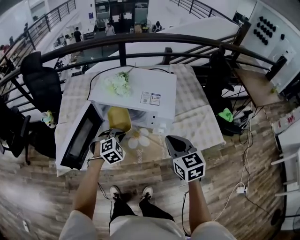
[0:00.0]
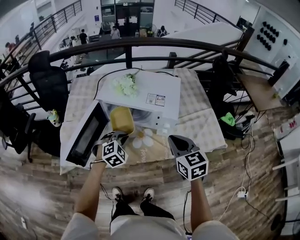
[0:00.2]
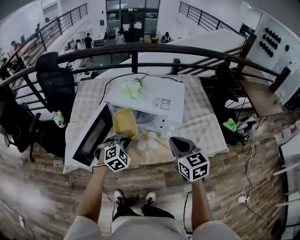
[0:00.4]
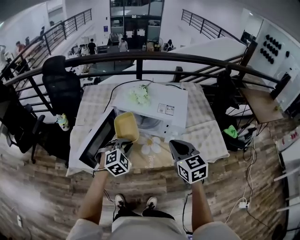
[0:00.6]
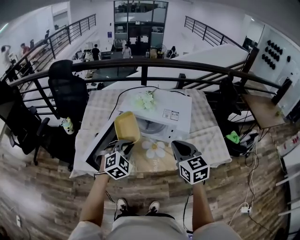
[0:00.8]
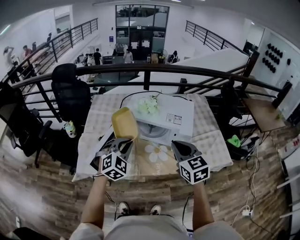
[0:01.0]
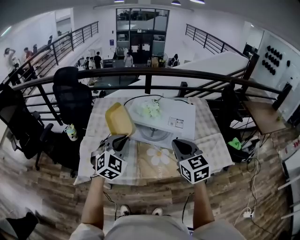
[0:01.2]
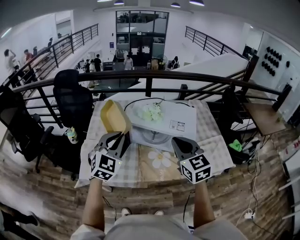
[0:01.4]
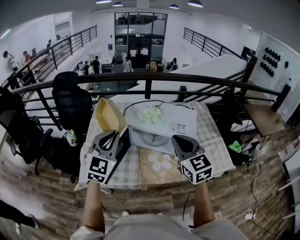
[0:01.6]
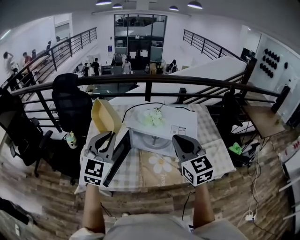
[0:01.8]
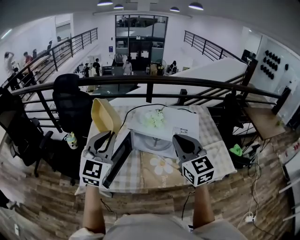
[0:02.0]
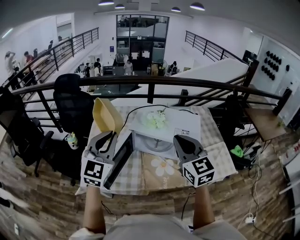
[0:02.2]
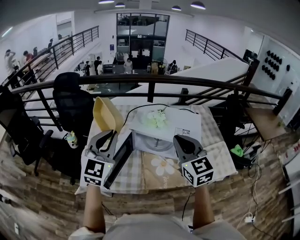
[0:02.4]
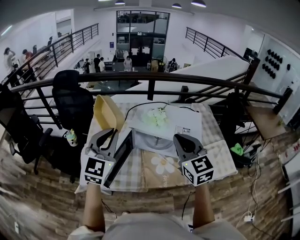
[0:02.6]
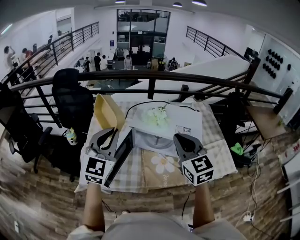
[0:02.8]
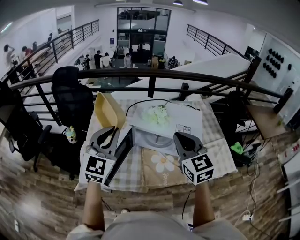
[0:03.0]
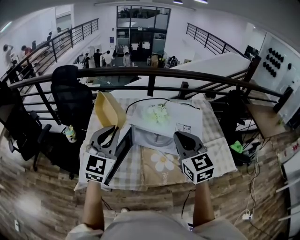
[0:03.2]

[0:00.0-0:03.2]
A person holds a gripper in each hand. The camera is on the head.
0:00.0 to 0:01.6: The left gripper shifts approximately 35 cm upward and to the left, and angles its fingers upward, by roughly 40 degrees. The right gripper shifts roughly 20 cm upward and to the left, and changes its angle by roughly 20 degrees.
0:01.6 to 0:03.2: The grippers make only small movements.

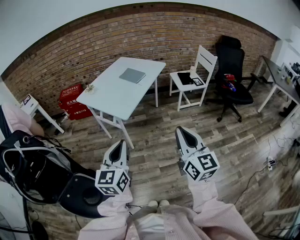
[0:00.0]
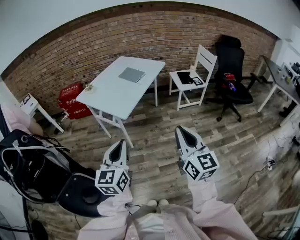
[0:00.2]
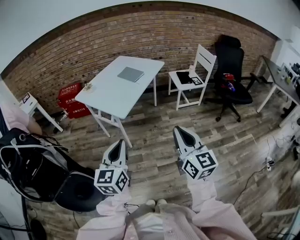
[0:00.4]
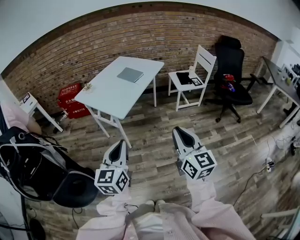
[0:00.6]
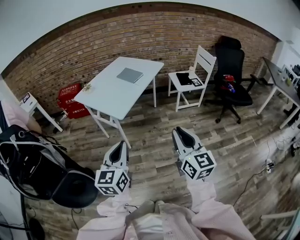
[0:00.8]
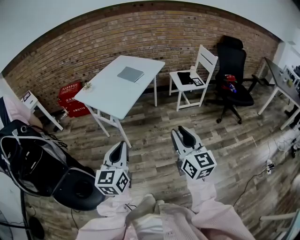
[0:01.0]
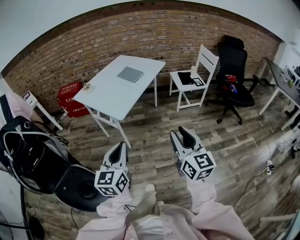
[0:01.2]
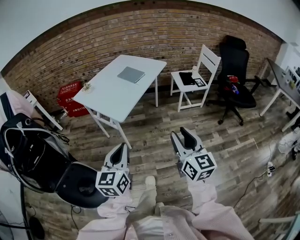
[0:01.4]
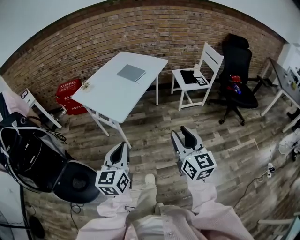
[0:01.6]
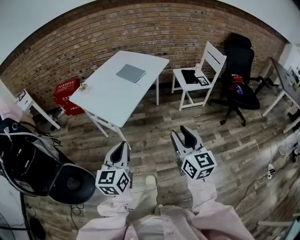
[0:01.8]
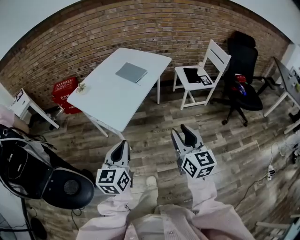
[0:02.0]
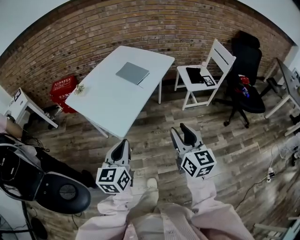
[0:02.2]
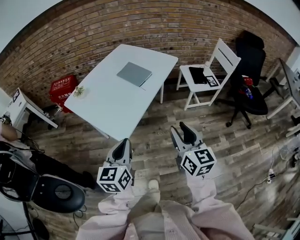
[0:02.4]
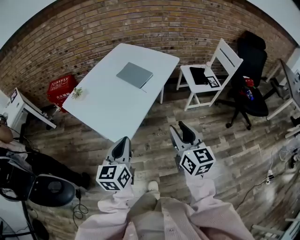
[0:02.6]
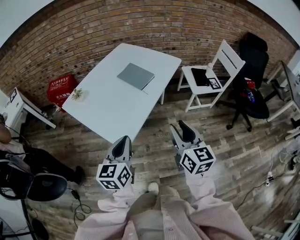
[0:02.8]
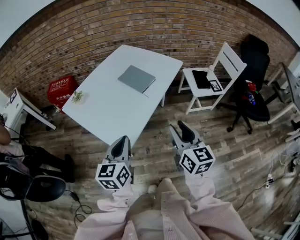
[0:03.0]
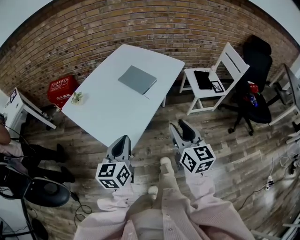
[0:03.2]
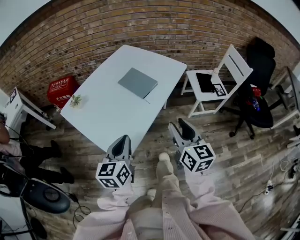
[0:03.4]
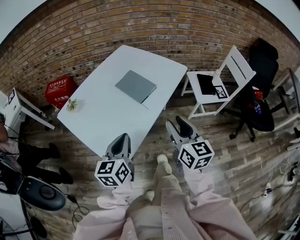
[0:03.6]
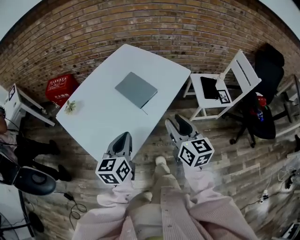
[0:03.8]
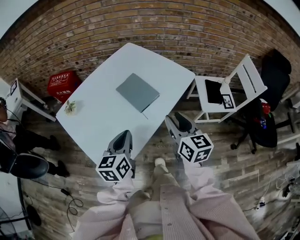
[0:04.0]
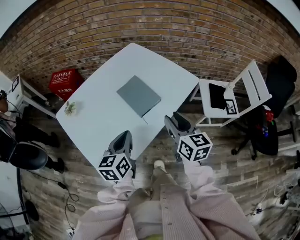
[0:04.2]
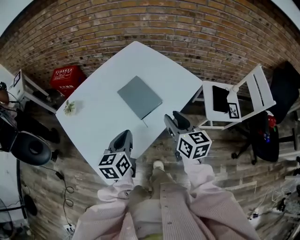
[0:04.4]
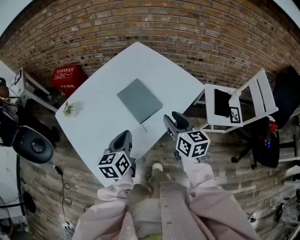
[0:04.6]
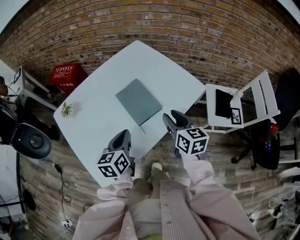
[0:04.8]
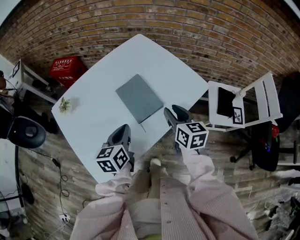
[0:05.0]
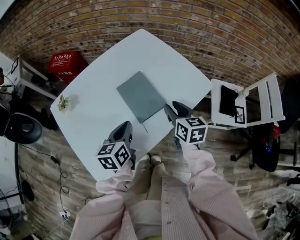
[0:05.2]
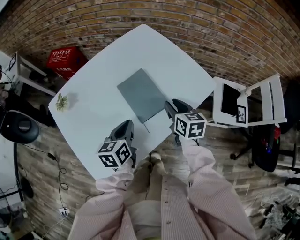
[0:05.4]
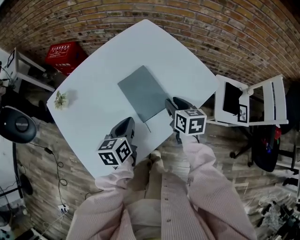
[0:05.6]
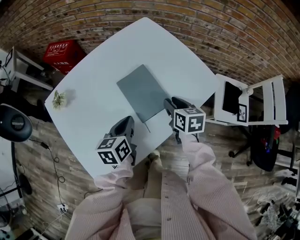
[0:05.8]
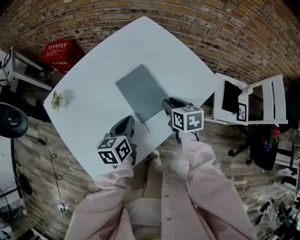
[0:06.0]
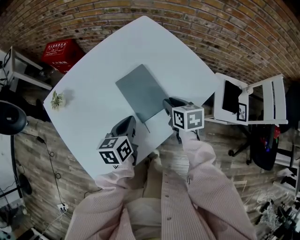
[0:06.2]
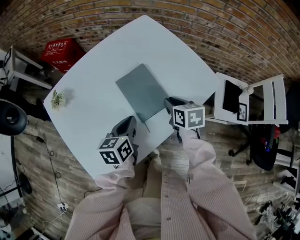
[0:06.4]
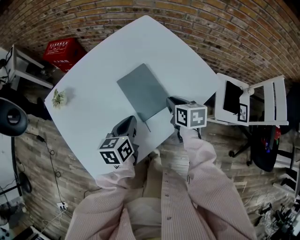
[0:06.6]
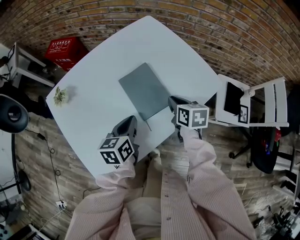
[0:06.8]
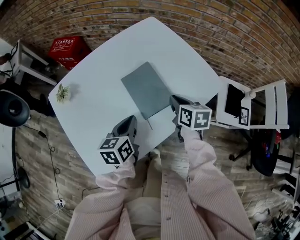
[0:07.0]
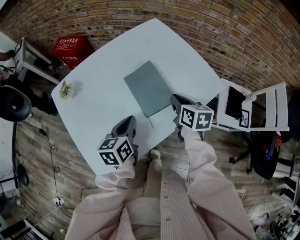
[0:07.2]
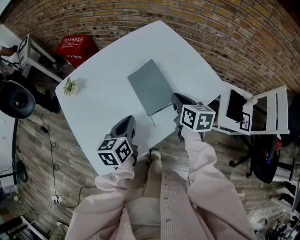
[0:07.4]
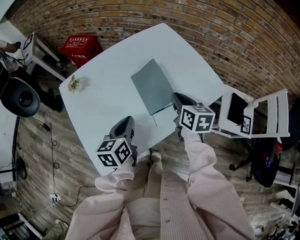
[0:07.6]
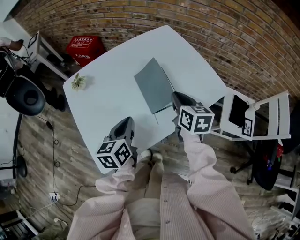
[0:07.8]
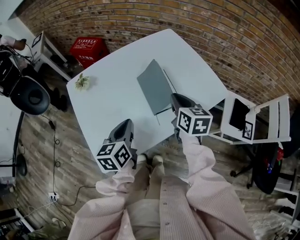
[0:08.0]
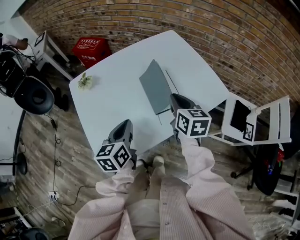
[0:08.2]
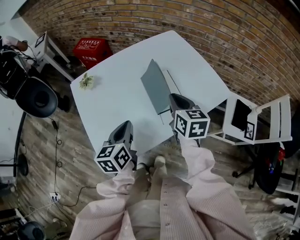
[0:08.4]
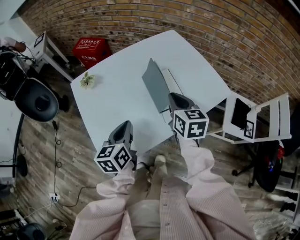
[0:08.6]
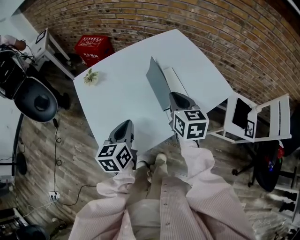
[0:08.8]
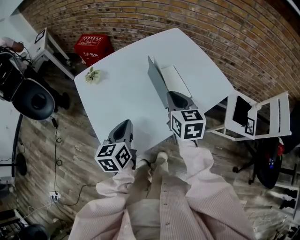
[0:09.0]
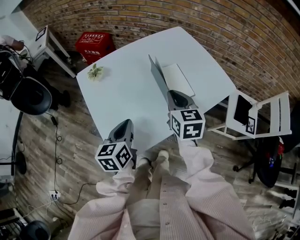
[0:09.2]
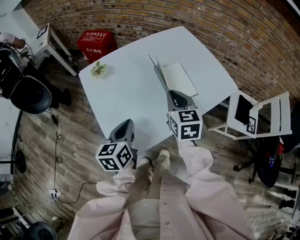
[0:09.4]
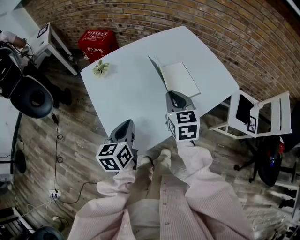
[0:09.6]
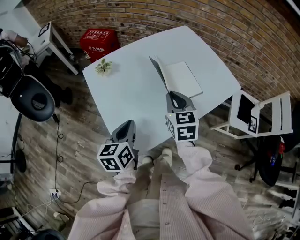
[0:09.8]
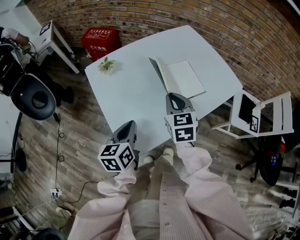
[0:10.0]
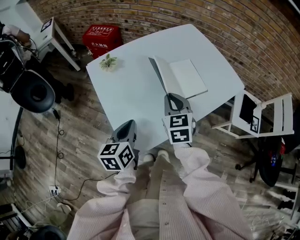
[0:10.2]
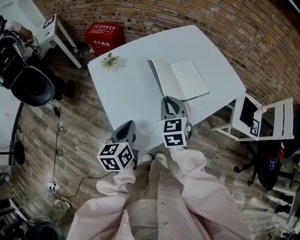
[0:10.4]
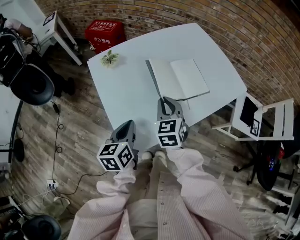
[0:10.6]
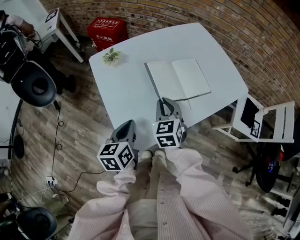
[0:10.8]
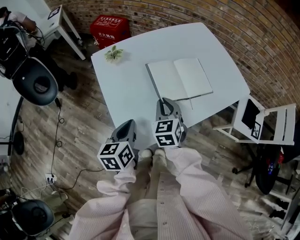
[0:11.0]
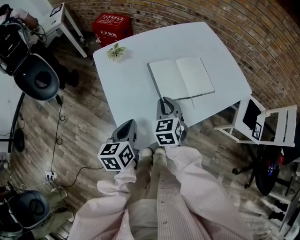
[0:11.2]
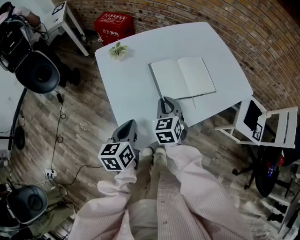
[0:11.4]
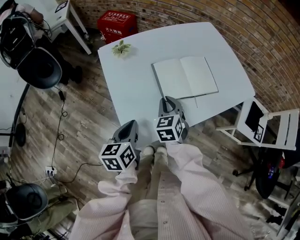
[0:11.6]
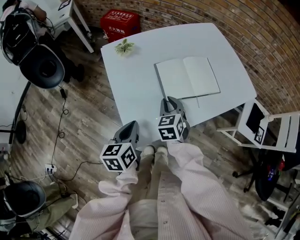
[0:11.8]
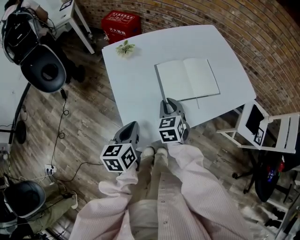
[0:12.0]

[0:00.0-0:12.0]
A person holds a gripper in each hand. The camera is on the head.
0:00.0 to 0:01.6: The left gripper heads forward, covering about 5 cm. The right gripper heads forward and downward, covering some 10 cm, and opens up.
0:01.6 to 0:03.0: Both grippers move forward, roughly 30 cm.
0:03.0 to 0:04.4: Both grippers move forward, roughly 25 cm.
0:04.4 to 0:06.0: The right gripper goes some 20 cm downward and forward, and changes its angle by about 30 degrees. Meanwhile the left gripper moves forward and downward, approximately 15 cm.
0:06.0 to 0:07.6: The left gripper heads backward, covering approximately 5 cm. Meanwhile the right gripper moves upward, some 10 cm, and closes up.
0:07.6 to 0:09.0: The left gripper moves to the left and backward, roughly 10 cm. The right gripper heads to the left and upward, covering approximately 10 cm.
0:09.0 to 0:10.4: The right gripper goes about 10 cm to the left and downward, and swivels roughly 20 degrees. The left gripper heads to the left, covering about 5 cm.
0:10.4 to 0:12.0: The right gripper moves downward, about 5 cm; the left gripper shifts by roughly 5 cm.

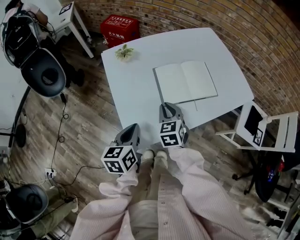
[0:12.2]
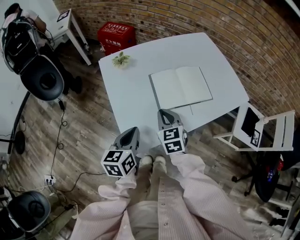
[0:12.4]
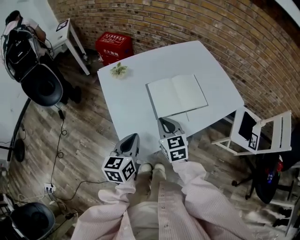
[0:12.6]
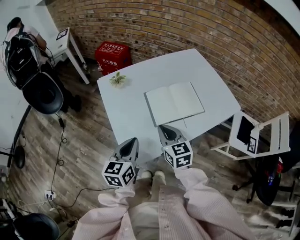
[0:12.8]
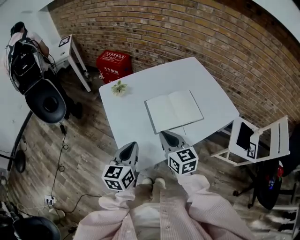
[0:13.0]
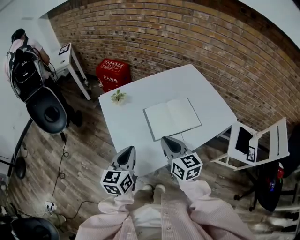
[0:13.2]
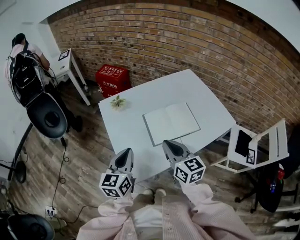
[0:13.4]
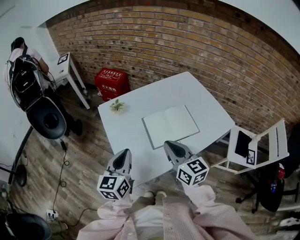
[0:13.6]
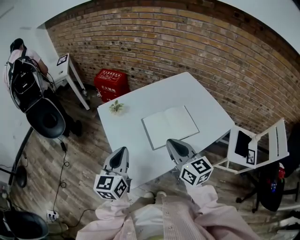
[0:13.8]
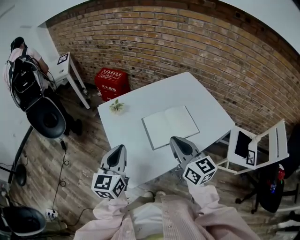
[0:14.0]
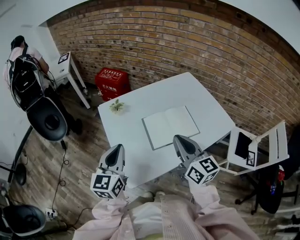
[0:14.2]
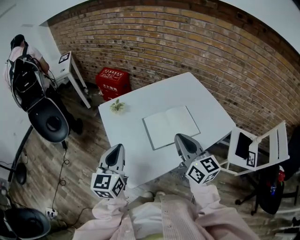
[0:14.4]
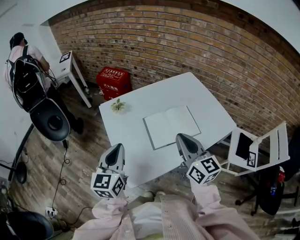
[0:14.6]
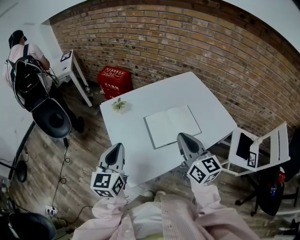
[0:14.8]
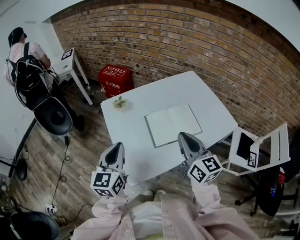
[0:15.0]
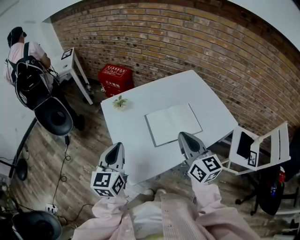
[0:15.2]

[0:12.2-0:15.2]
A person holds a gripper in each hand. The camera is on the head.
0:12.2 to 0:13.8: The two grippers go about 15 cm upward. The right gripper tips its fingers upward by approximately 30 degrees. The left gripper swivels some 30 degrees.
0:13.8 to 0:15.2: There are only small adjustments of the grippers.

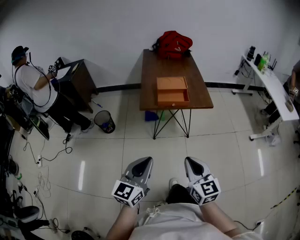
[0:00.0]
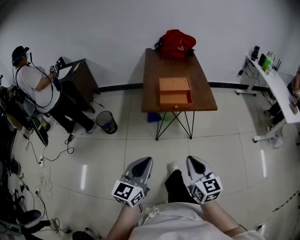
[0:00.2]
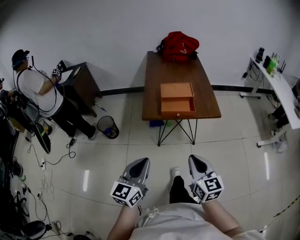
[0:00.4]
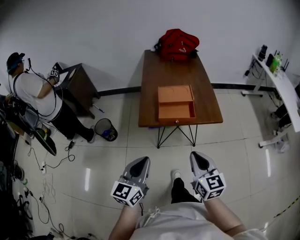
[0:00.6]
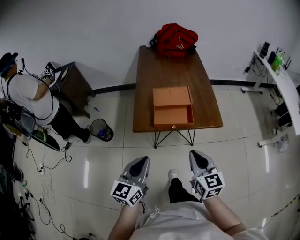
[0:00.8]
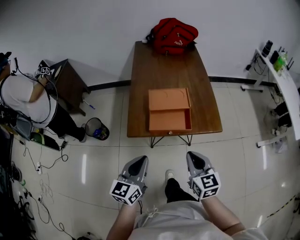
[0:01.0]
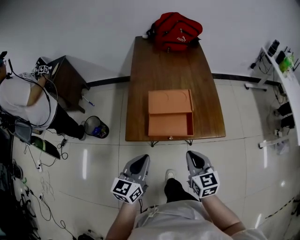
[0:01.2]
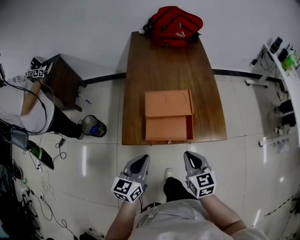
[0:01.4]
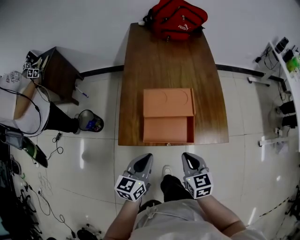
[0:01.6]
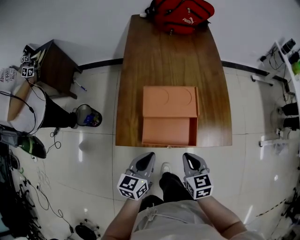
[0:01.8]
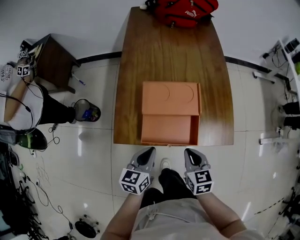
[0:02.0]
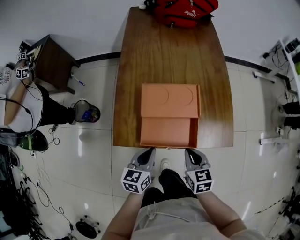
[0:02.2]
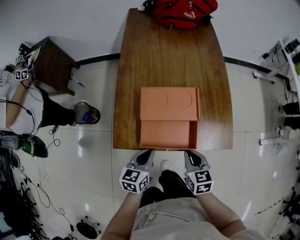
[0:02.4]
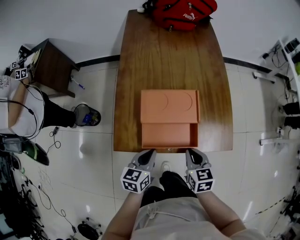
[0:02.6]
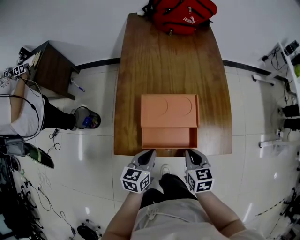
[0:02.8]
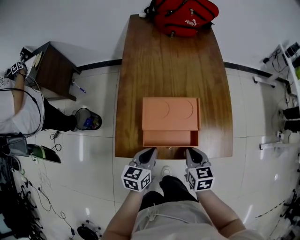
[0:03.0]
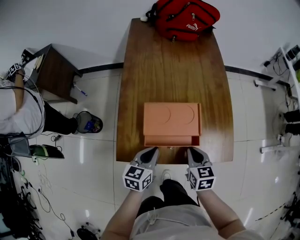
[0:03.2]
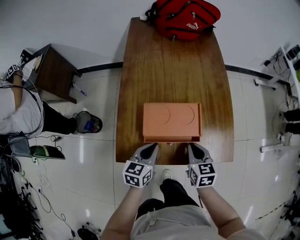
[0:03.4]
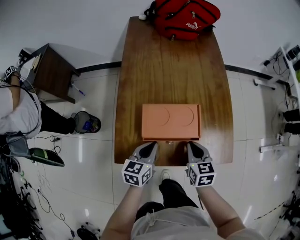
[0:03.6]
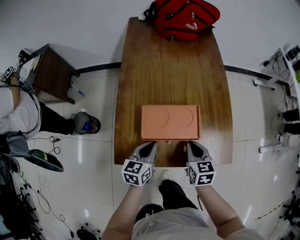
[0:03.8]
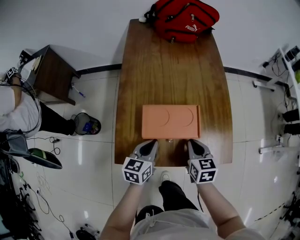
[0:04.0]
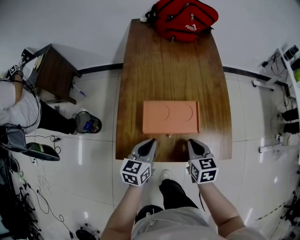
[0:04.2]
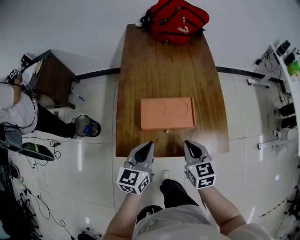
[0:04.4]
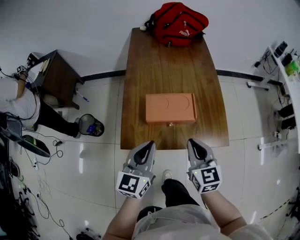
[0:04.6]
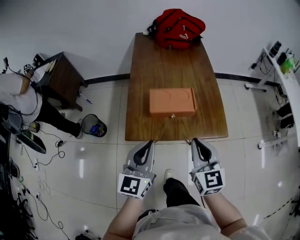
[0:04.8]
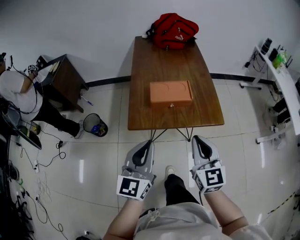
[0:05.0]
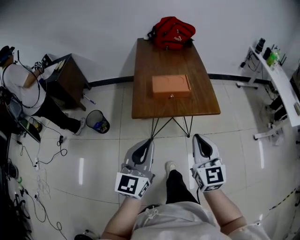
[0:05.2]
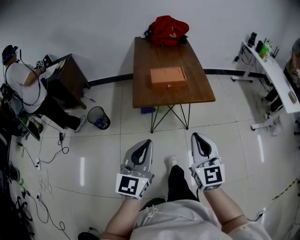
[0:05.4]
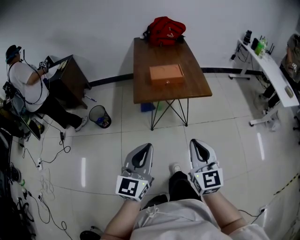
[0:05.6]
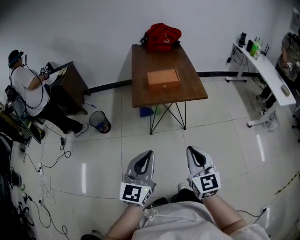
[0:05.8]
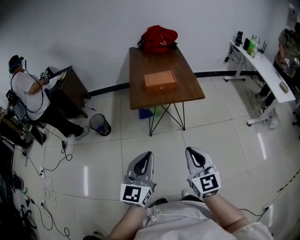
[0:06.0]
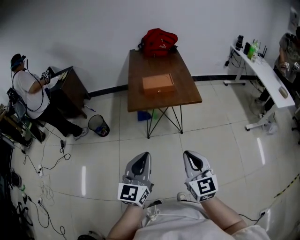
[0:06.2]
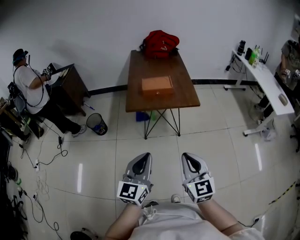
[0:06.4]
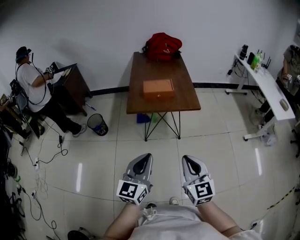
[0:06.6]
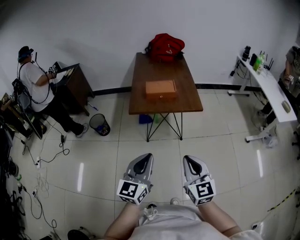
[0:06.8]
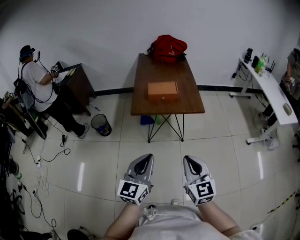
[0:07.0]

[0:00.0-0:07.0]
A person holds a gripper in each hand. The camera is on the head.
0:00.0 to 0:01.4: The grippers both shift forward by about 40 cm.
0:01.4 to 0:02.8: The two grippers go approximately 15 cm downward and forward.
0:02.8 to 0:04.2: Both grippers move forward, roughly 5 cm.
0:04.2 to 0:05.6: The pair of grippers is taken backward, about 50 cm. Both grippers move upward, roughly 25 cm. The right gripper changes its angle by some 30 degrees. Meanwhile the left gripper changes its angle by roughly 30 degrees.
0:05.6 to 0:07.0: The two grippers go about 5 cm to the right.
